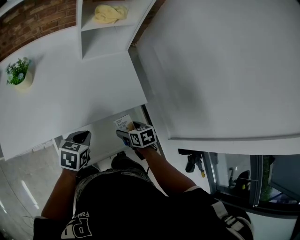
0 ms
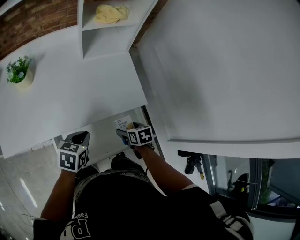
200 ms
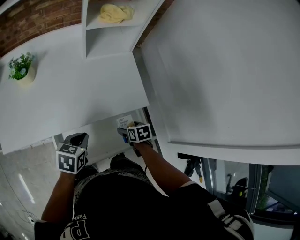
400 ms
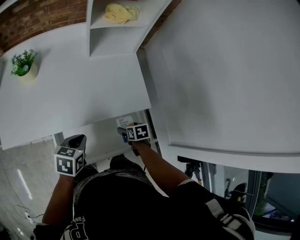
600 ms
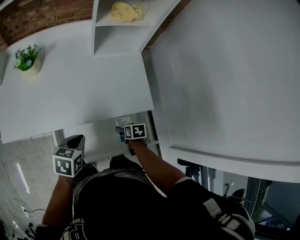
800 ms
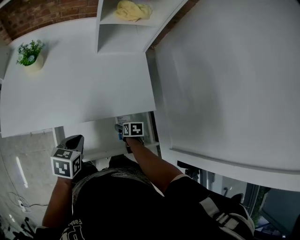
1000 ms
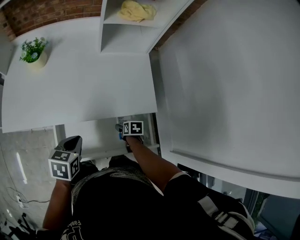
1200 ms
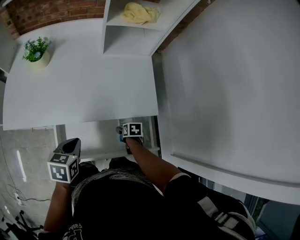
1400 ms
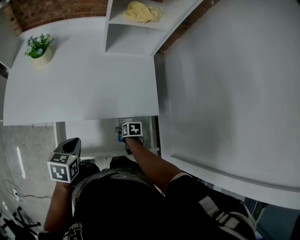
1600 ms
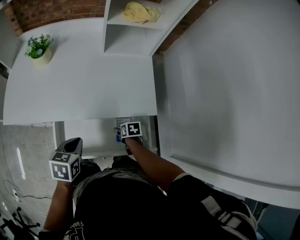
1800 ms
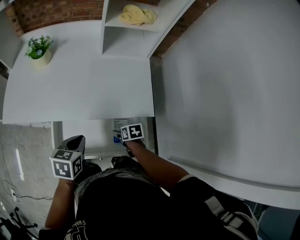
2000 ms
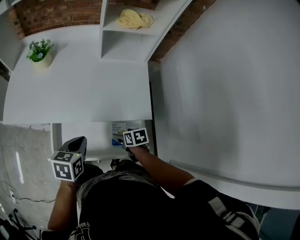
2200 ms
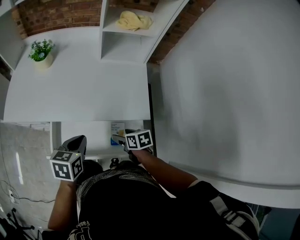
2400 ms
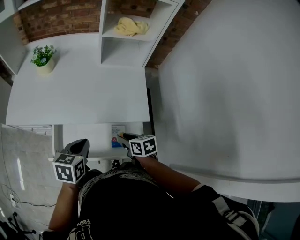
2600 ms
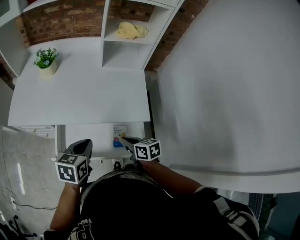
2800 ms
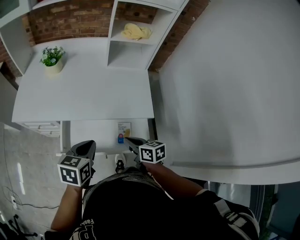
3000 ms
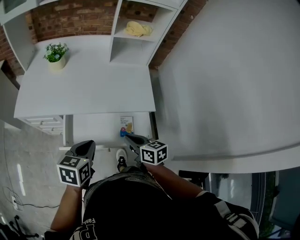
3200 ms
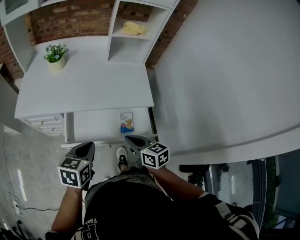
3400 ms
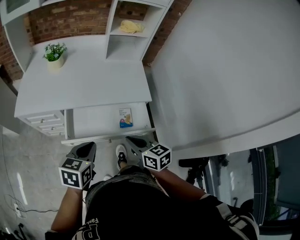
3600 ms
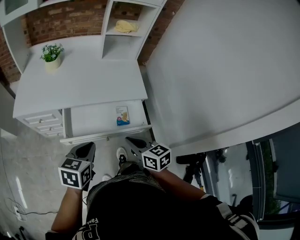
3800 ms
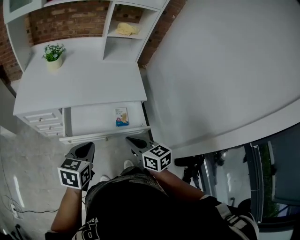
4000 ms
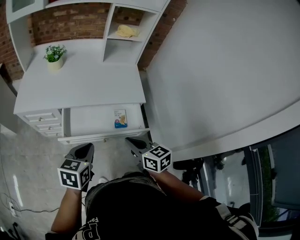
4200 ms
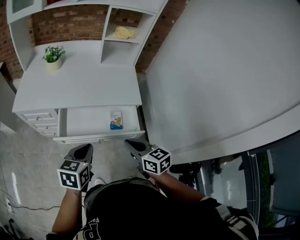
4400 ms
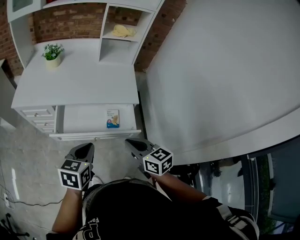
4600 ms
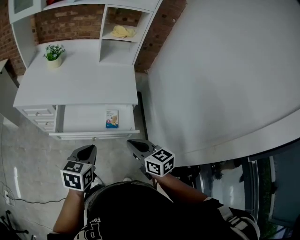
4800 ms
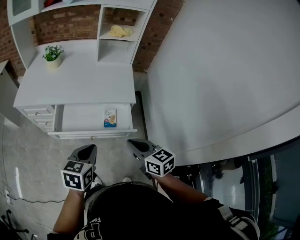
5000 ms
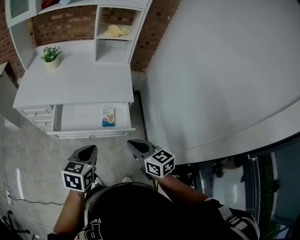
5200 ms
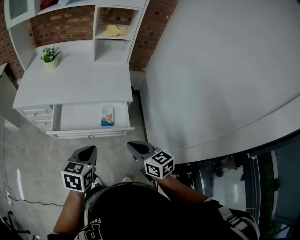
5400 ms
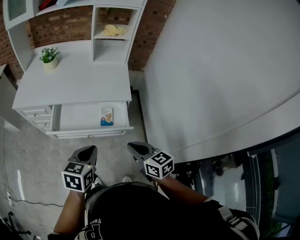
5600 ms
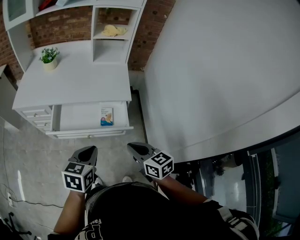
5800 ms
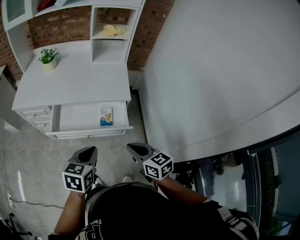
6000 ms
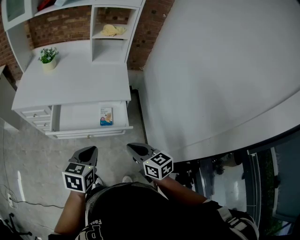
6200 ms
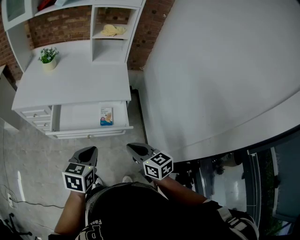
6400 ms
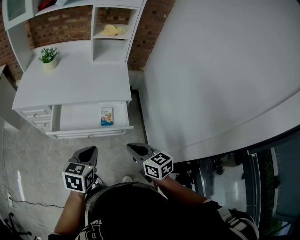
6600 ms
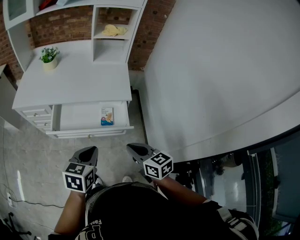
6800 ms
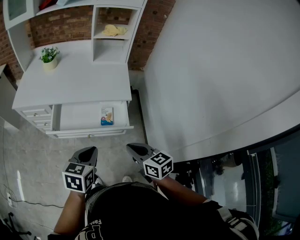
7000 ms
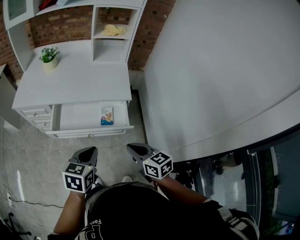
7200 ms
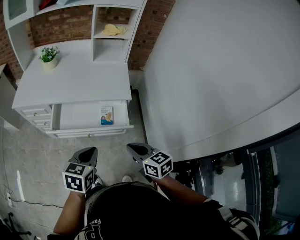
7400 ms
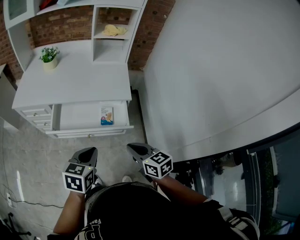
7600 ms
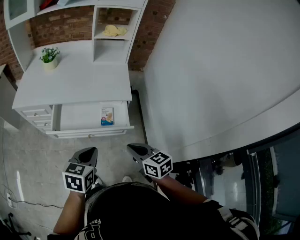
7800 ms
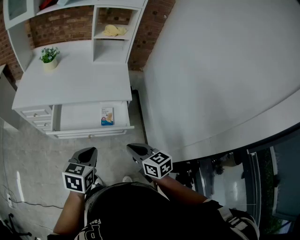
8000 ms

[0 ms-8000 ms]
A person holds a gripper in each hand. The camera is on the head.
0 ms to 1600 ms: The left gripper moves approximately 5 cm, and changes its angle by some 20 degrees, while the right gripper is displaced downward by some 15 cm.
1600 ms to 3200 ms: The left gripper moves backward and upward, some 15 cm. The right gripper shifts roughly 25 cm upward, points its fingers about 40 degrees further upward, and closes.
3200 ms to 4800 ms: The right gripper moves backward, upward and to the right, about 20 cm, while the left gripper moves backward and to the right, some 15 cm.
4800 ms to 6400 ms: The right gripper shifts by some 5 cm; the left gripper changes place by some 5 cm.
6400 ms to 8000 ms: Neither gripper changes place.

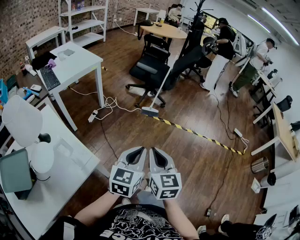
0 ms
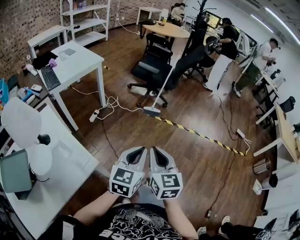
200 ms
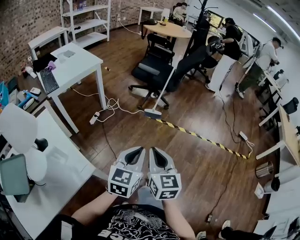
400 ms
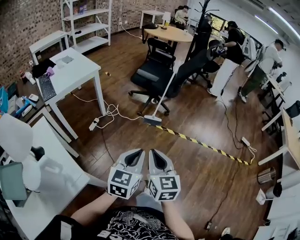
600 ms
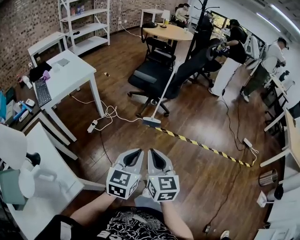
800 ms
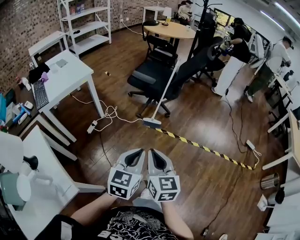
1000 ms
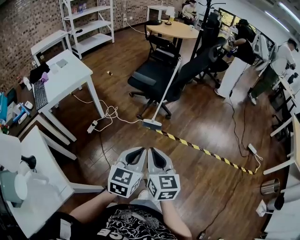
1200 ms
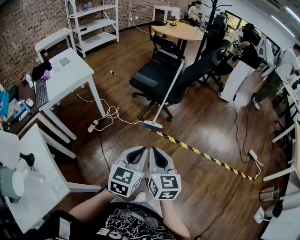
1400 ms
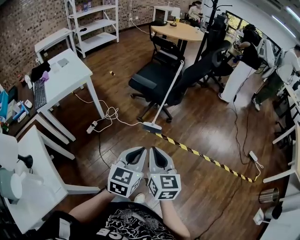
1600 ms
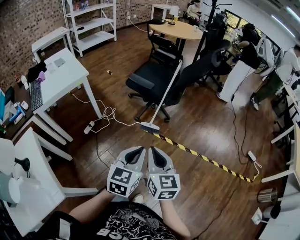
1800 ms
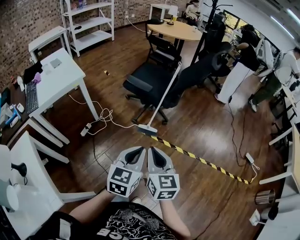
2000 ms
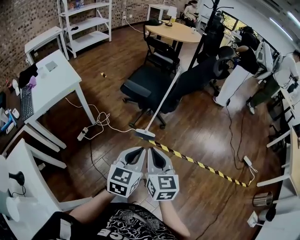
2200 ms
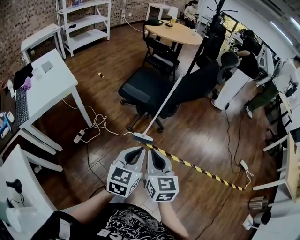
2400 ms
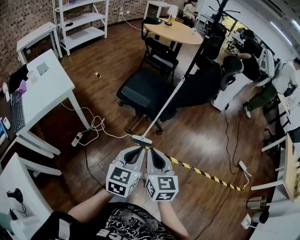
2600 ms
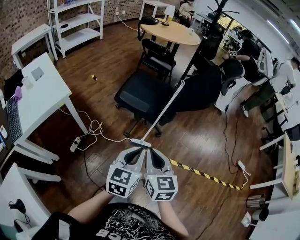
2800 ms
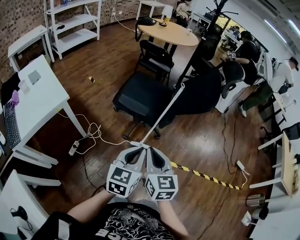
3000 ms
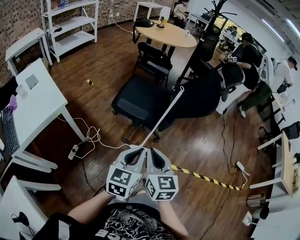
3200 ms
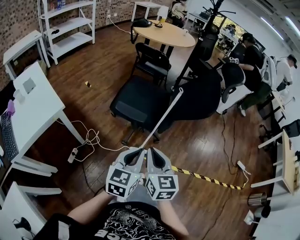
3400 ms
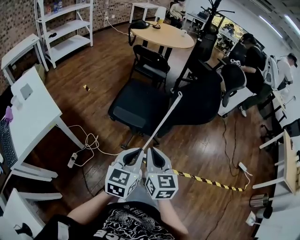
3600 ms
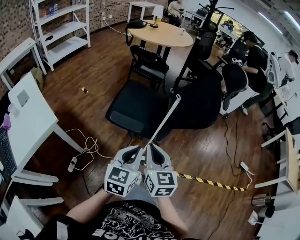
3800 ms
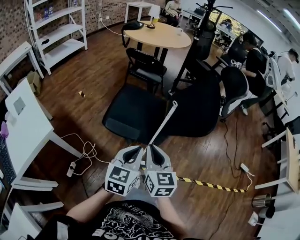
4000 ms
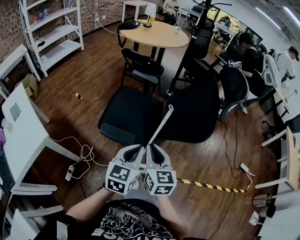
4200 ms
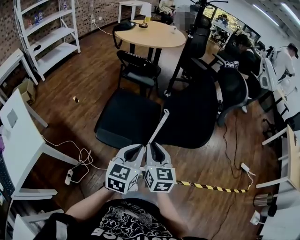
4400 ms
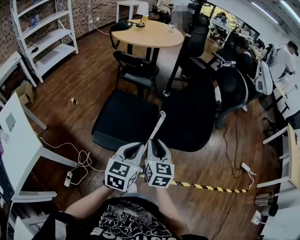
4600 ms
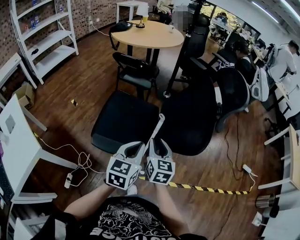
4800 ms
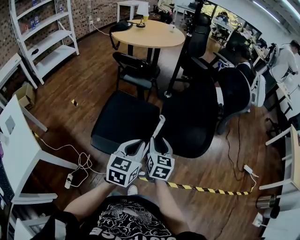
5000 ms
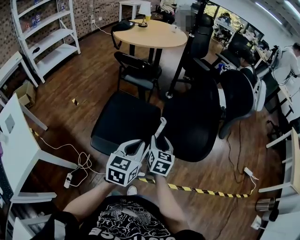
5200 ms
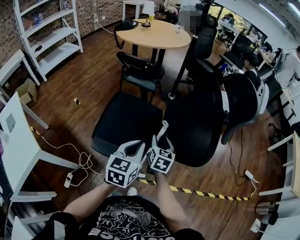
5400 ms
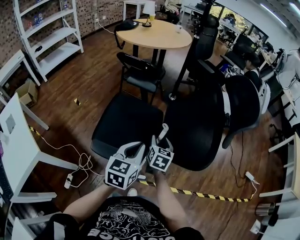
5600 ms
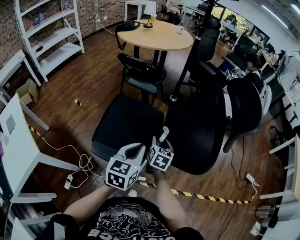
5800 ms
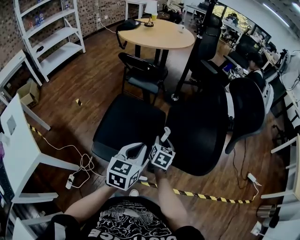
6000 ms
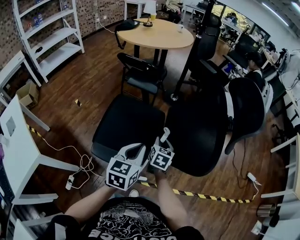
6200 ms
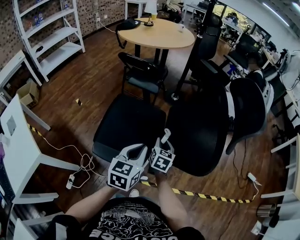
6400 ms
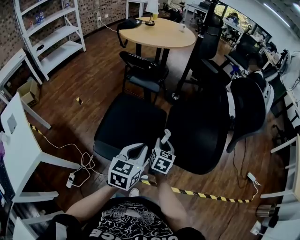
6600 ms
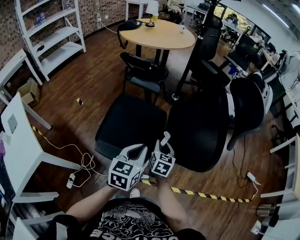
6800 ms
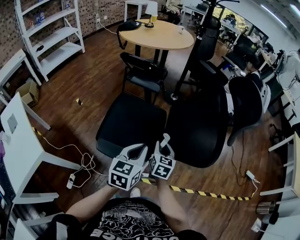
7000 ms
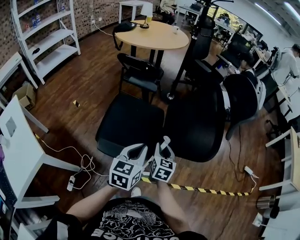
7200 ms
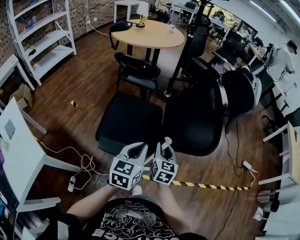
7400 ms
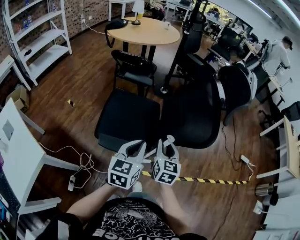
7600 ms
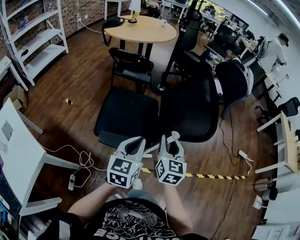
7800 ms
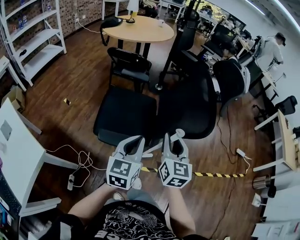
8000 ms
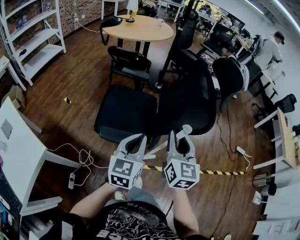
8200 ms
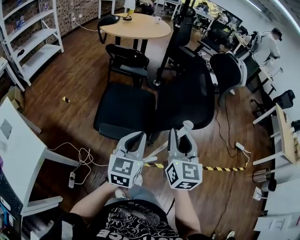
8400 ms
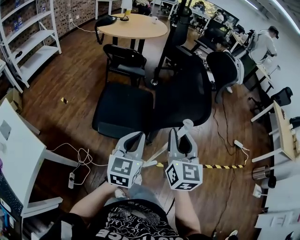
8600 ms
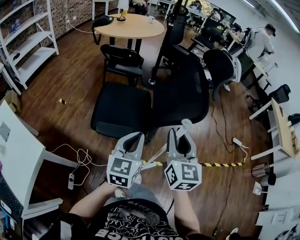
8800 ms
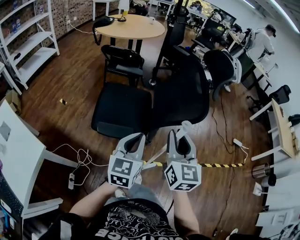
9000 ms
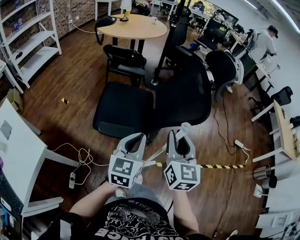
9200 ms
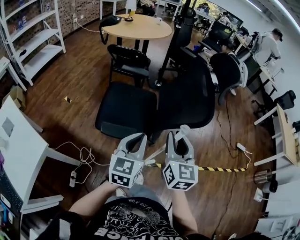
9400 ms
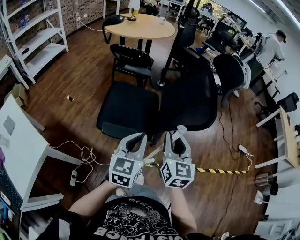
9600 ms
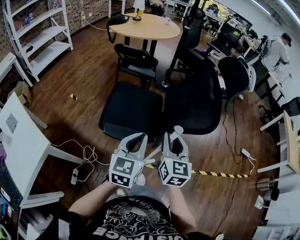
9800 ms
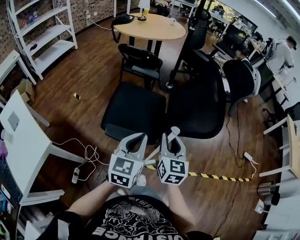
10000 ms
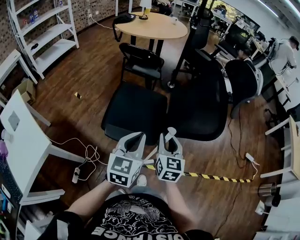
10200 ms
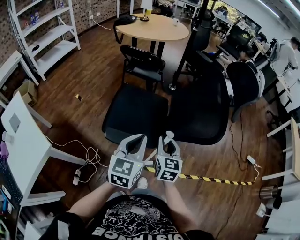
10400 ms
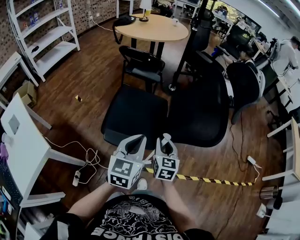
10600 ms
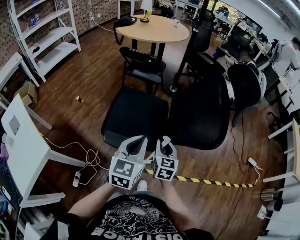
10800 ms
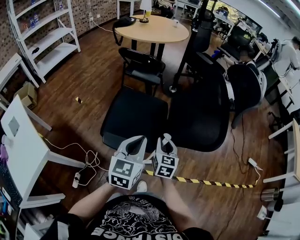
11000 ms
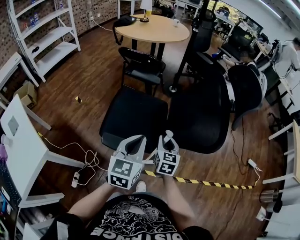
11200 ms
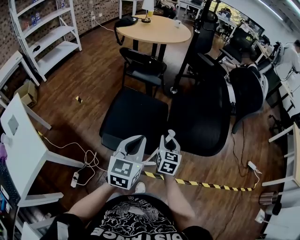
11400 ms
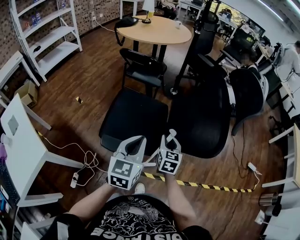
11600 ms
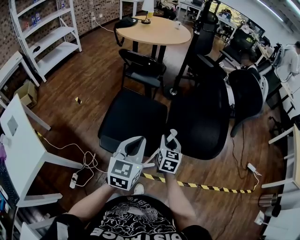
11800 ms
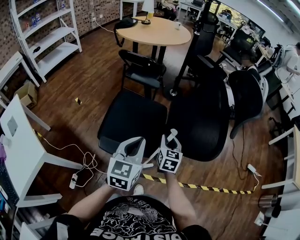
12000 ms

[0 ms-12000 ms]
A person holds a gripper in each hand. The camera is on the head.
0 ms to 1600 ms: The two grippers go some 35 cm forward and to the right.
1600 ms to 3000 ms: Both grippers travel together forward, roughly 30 cm.
3000 ms to 4400 ms: Both grippers travel together forward, about 30 cm.
4400 ms to 6000 ms: The right gripper moves forward and downward, approximately 25 cm, changes its angle by about 20 degrees, and opens. Meanwhile the left gripper is displaced forward by some 15 cm.
6000 ms to 7600 ms: The right gripper is displaced backward and upward by approximately 20 cm. Meanwhile the left gripper moves backward, about 10 cm.
7600 ms to 9000 ms: The left gripper moves backward, some 10 cm. The right gripper goes approximately 20 cm upward and backward.
9000 ms to 10400 ms: The left gripper is displaced forward by some 5 cm, while the right gripper is displaced downward and forward by about 20 cm.
10400 ms to 12000 ms: The right gripper heads forward and downward, covering some 15 cm; the left gripper moves forward, about 5 cm.

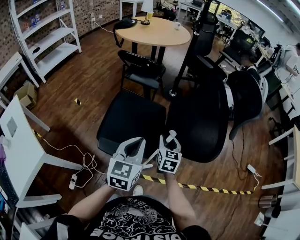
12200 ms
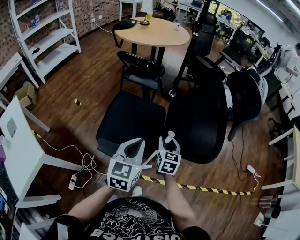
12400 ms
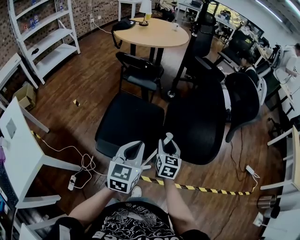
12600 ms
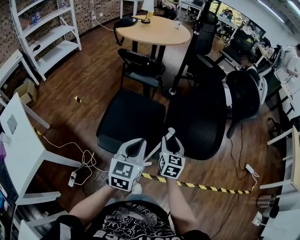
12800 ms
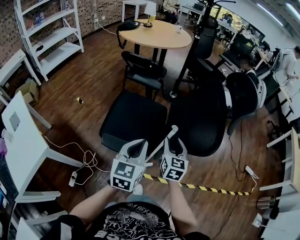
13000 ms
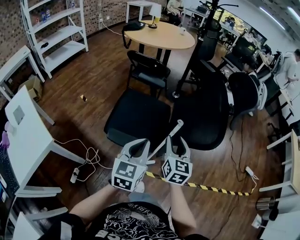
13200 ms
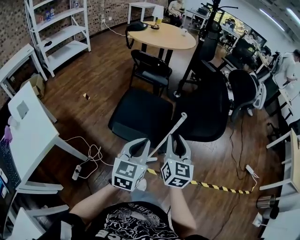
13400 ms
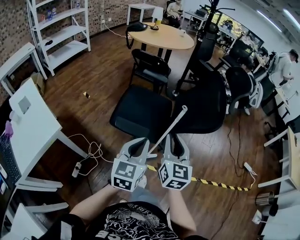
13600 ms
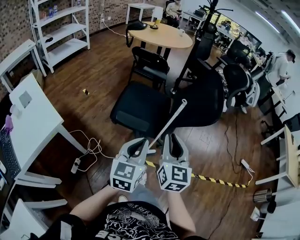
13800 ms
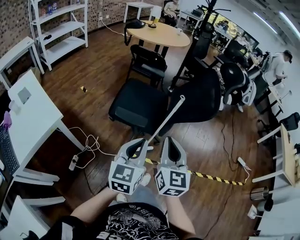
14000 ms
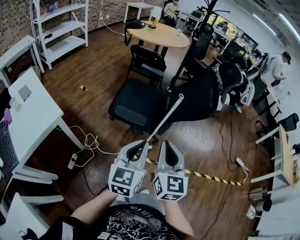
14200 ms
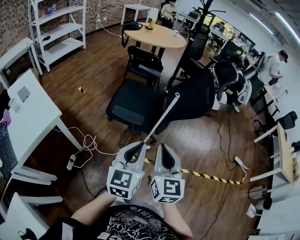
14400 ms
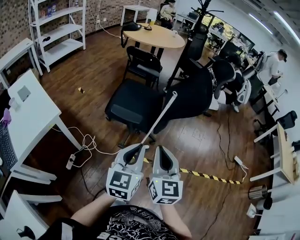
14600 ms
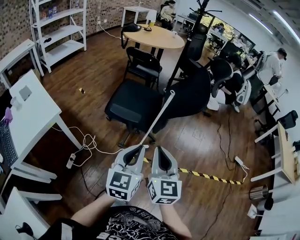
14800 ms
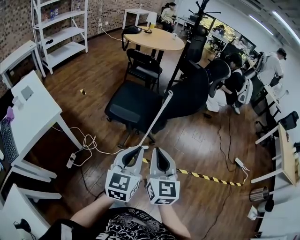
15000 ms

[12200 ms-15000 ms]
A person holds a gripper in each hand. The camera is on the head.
12200 ms to 13600 ms: The left gripper shifts some 20 cm backward; the right gripper heads backward and upward, covering approximately 30 cm.
13600 ms to 15000 ms: The two grippers go approximately 20 cm backward.

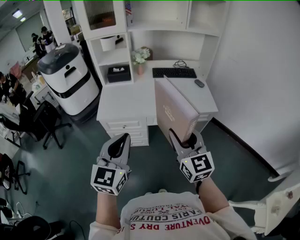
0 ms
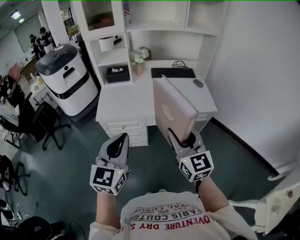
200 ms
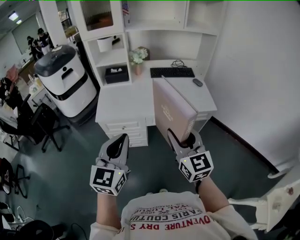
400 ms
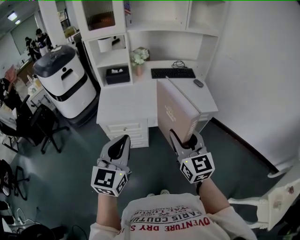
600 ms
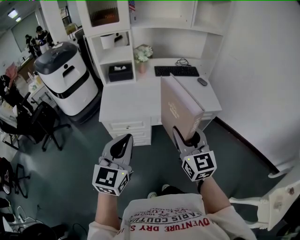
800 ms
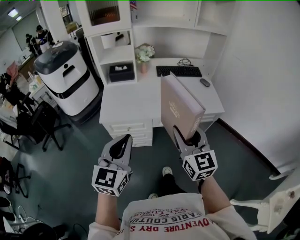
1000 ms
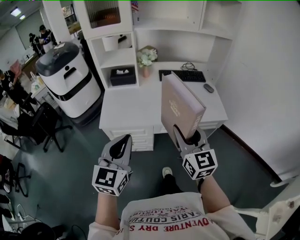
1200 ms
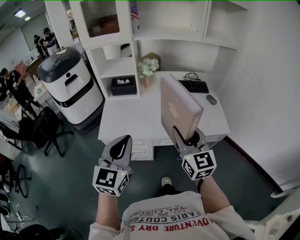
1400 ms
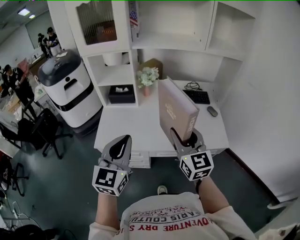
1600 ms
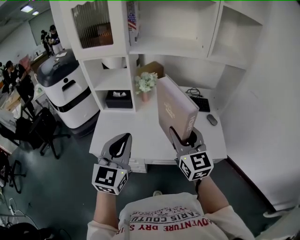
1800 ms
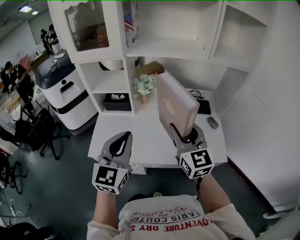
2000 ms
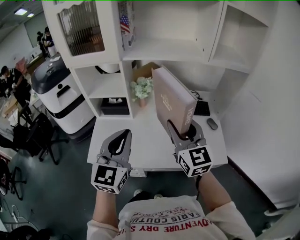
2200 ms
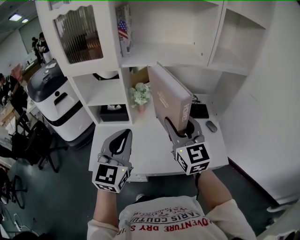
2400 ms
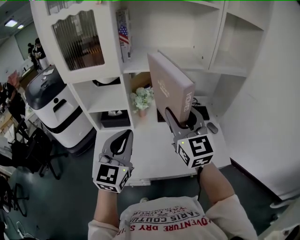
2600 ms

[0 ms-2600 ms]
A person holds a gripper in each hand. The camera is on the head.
0 ms to 1200 ms: The two grippers go about 10 cm forward.
1200 ms to 2600 ms: The grippers both shift forward by approximately 35 cm.
